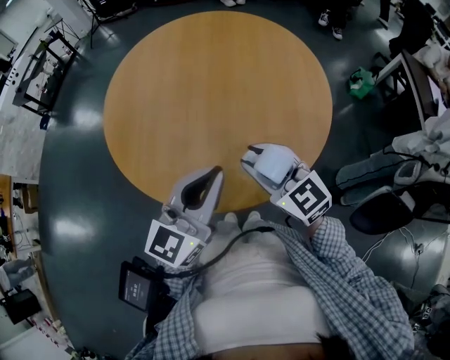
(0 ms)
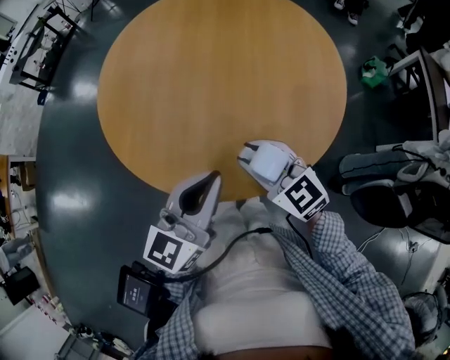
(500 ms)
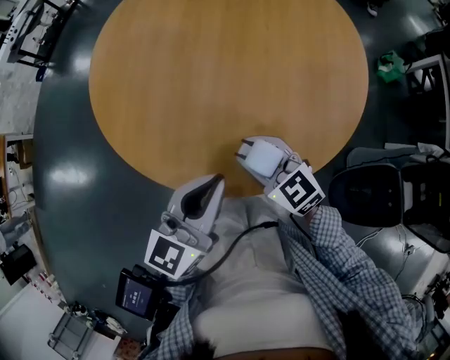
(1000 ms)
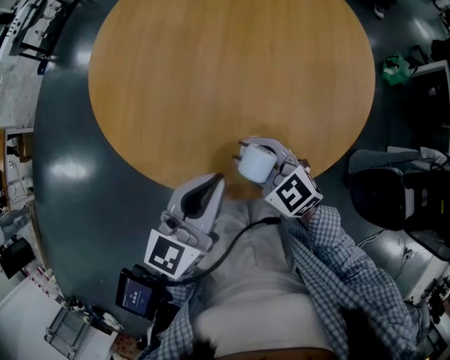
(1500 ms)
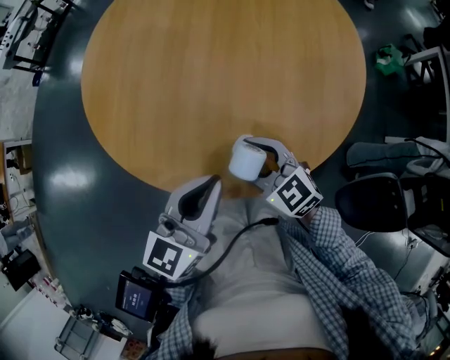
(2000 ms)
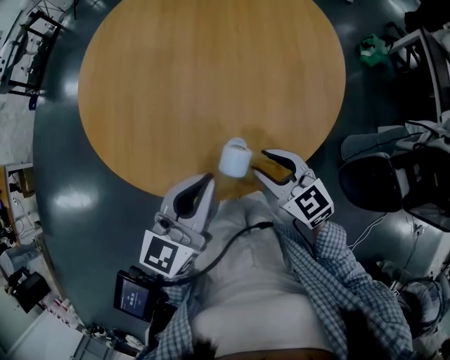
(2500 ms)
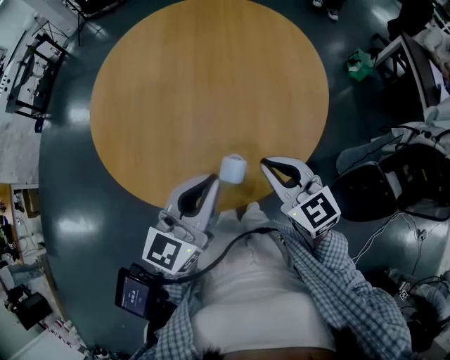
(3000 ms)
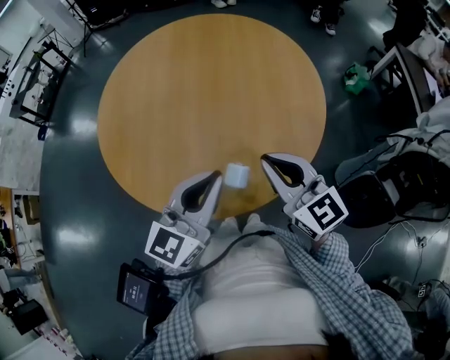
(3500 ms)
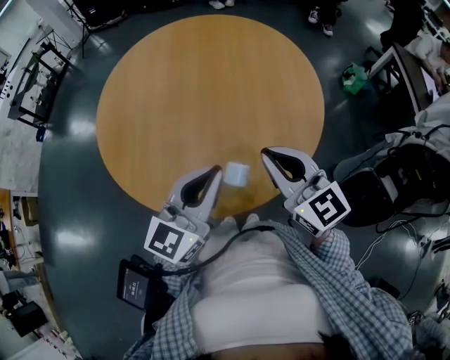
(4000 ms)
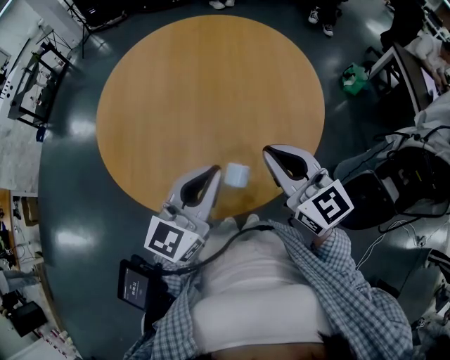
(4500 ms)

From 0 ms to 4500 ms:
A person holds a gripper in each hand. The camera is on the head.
From 0 ms to 2000 ms: The right gripper is displaced downward by some 15 cm, and opens. The left gripper shifts roughly 10 cm downward.
From 2000 ms to 4500 ms: The right gripper goes about 25 cm upward and to the right, changes its angle by some 30 degrees, and closes its fingers, while the left gripper goes about 10 cm upward.

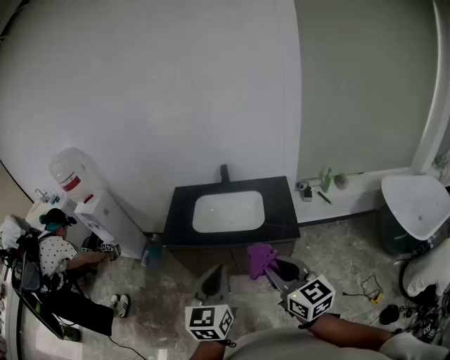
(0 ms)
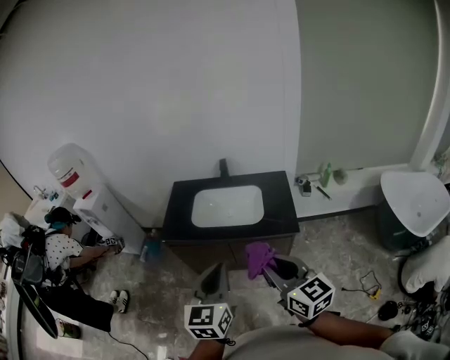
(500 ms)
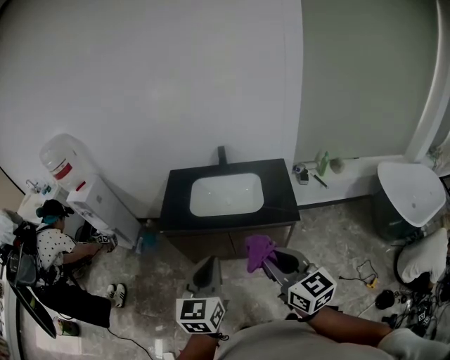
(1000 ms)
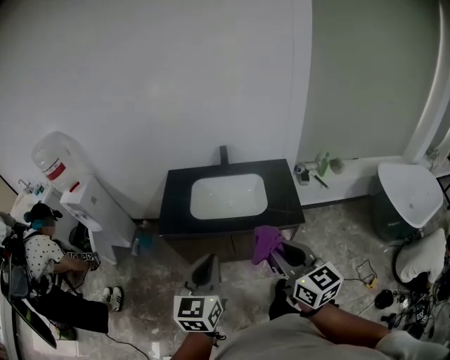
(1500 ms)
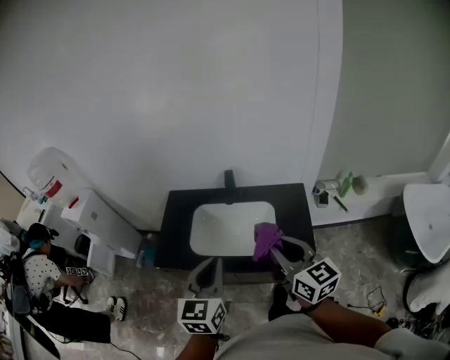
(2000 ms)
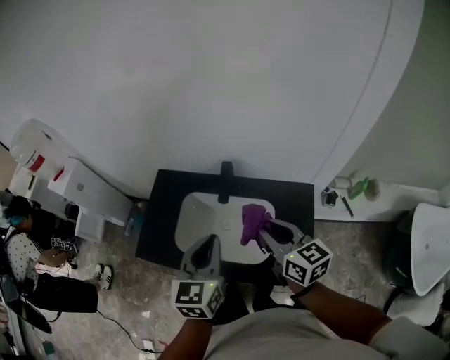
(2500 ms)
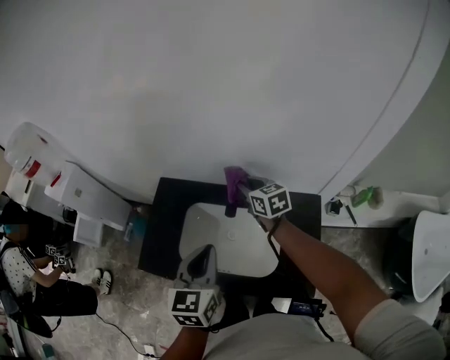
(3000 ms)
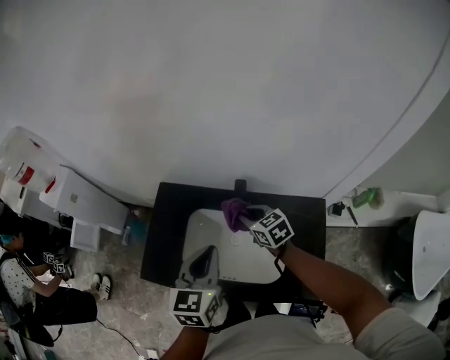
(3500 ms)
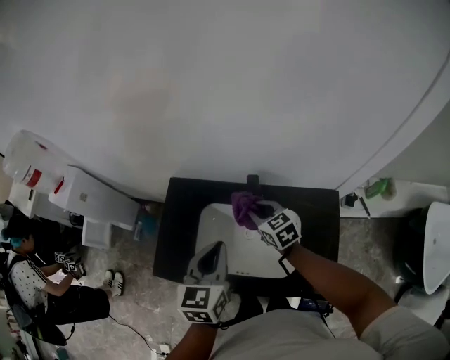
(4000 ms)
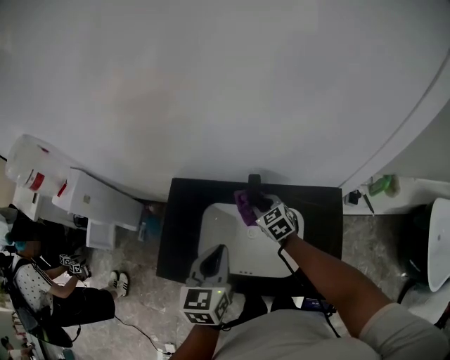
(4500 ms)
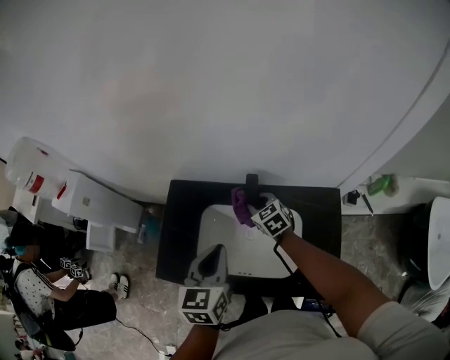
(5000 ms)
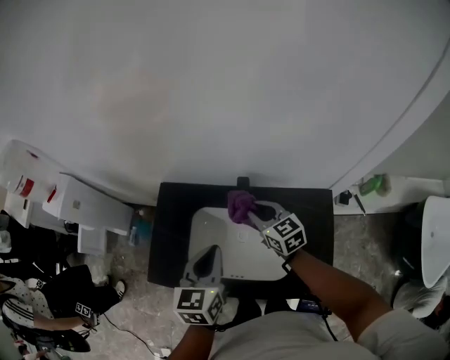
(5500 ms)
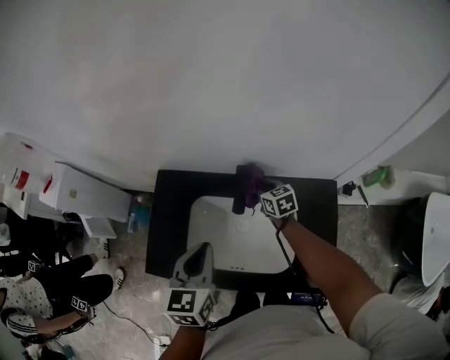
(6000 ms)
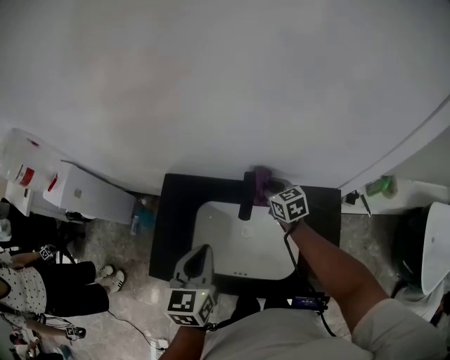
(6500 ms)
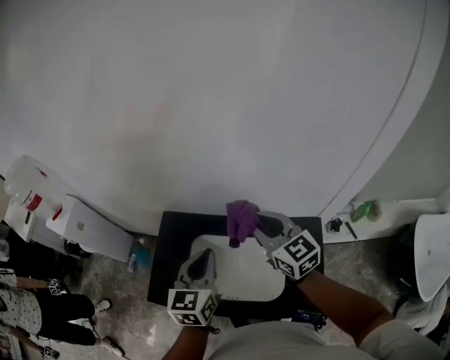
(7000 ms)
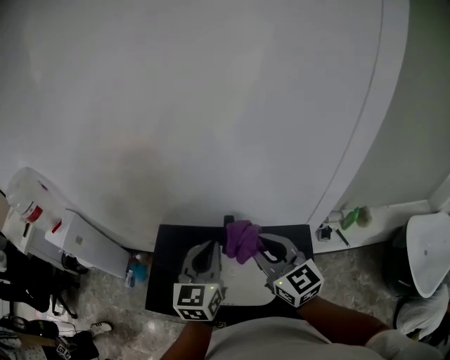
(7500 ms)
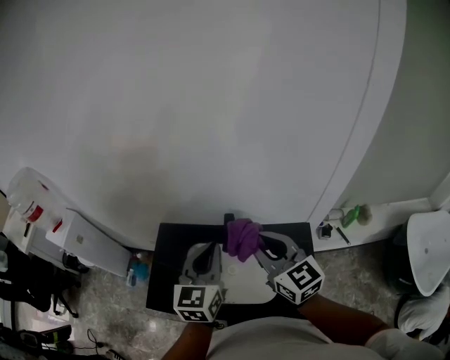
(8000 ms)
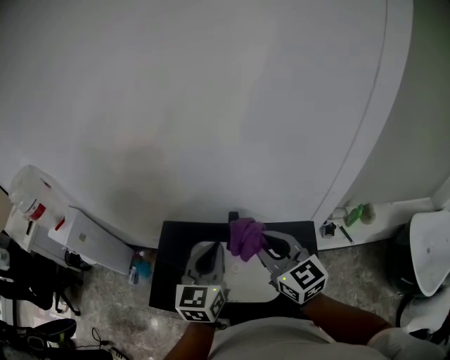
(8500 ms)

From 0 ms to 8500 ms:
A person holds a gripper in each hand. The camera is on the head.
From 0 ms to 2000 ms: Both grippers move forward, roughly 30 cm.
From 2000 ms to 4000 ms: The right gripper moves forward and downward, about 50 cm, and turns by approximately 30 degrees. Meanwhile the left gripper travels forward by approximately 30 cm.
From 4000 ms to 6500 ms: The right gripper swings up and down, about 15 cm each way, with 3 reversals.
From 6500 ms to 8500 ms: The left gripper moves upward and to the right, some 15 cm, and rotates roughly 20 degrees; the right gripper shifts about 40 cm upward and backward, and turns by roughly 30 degrees.

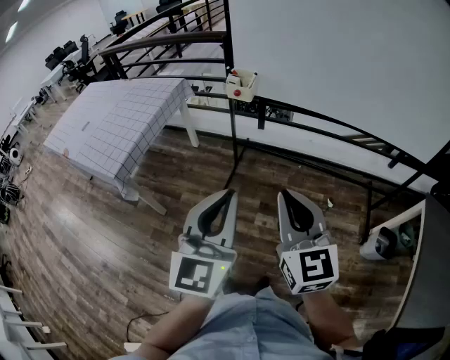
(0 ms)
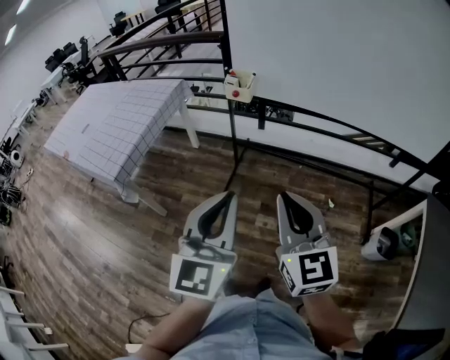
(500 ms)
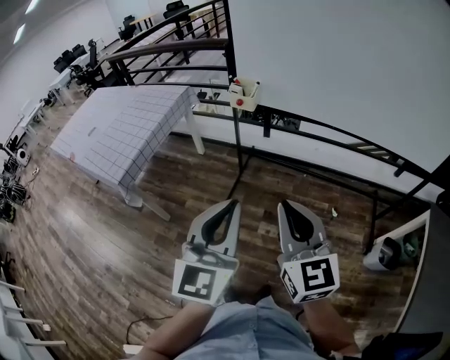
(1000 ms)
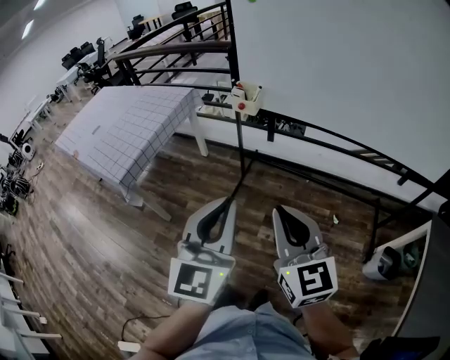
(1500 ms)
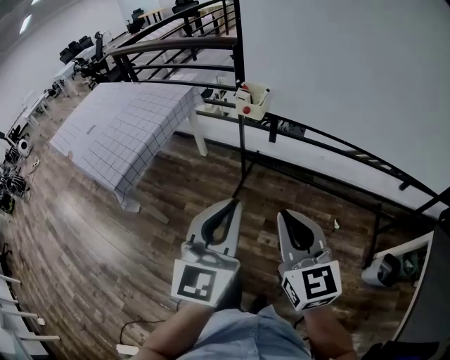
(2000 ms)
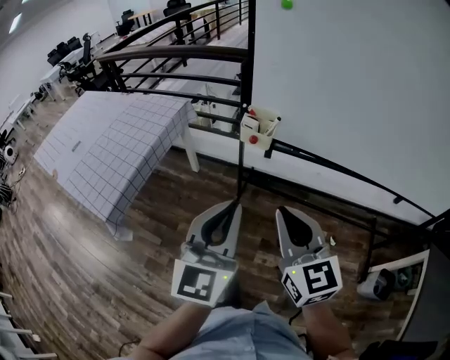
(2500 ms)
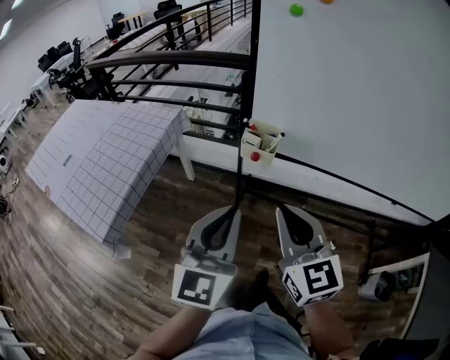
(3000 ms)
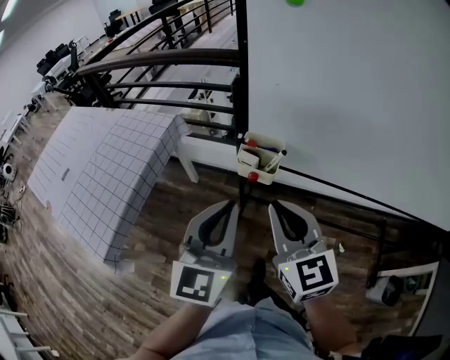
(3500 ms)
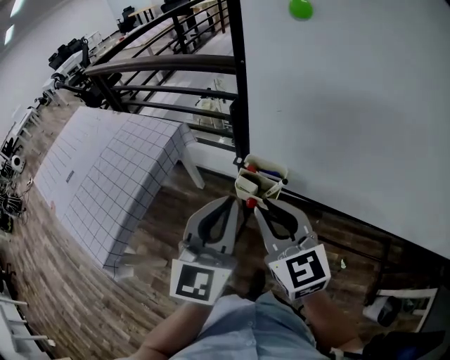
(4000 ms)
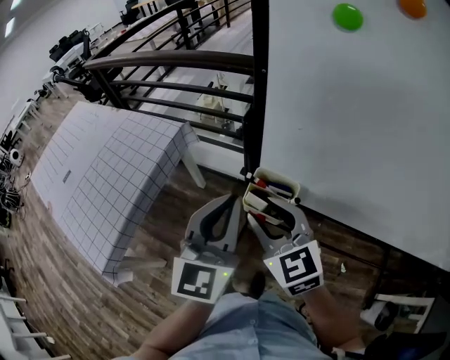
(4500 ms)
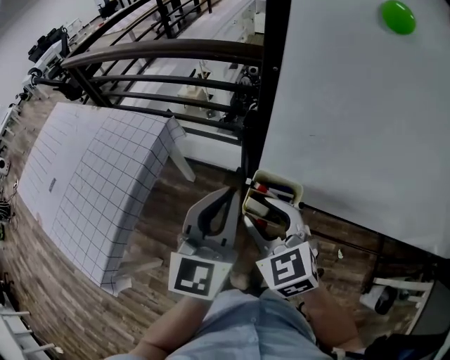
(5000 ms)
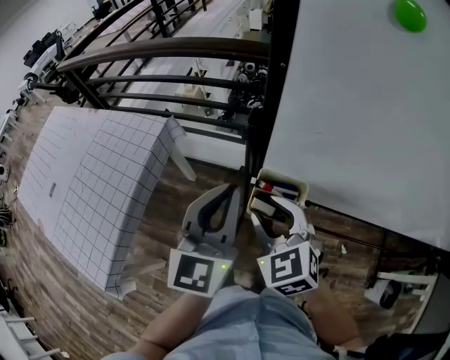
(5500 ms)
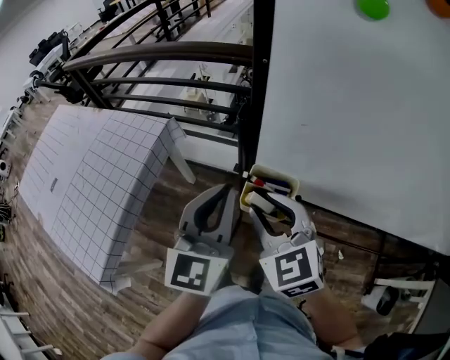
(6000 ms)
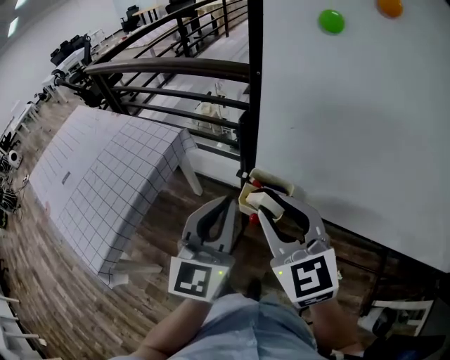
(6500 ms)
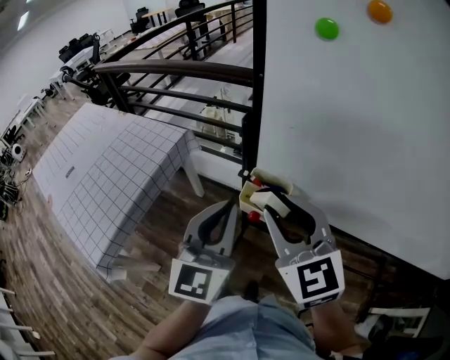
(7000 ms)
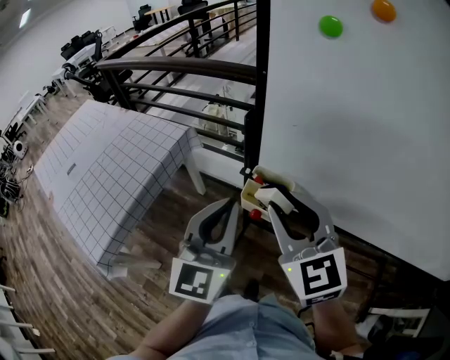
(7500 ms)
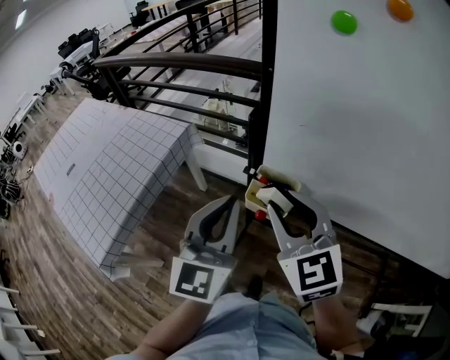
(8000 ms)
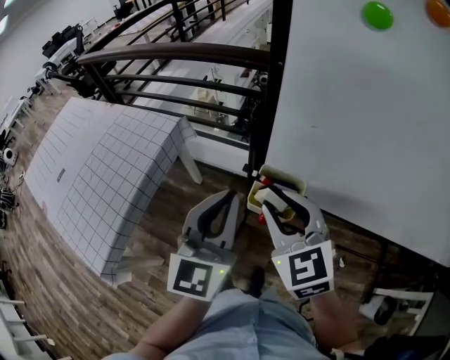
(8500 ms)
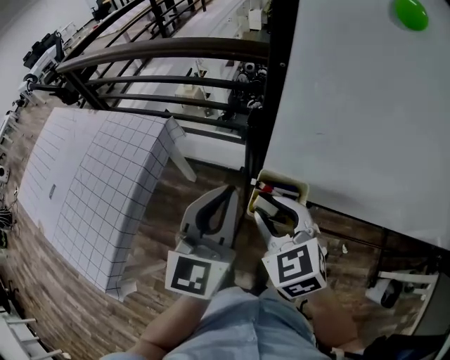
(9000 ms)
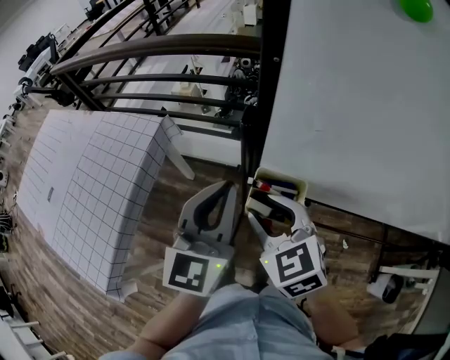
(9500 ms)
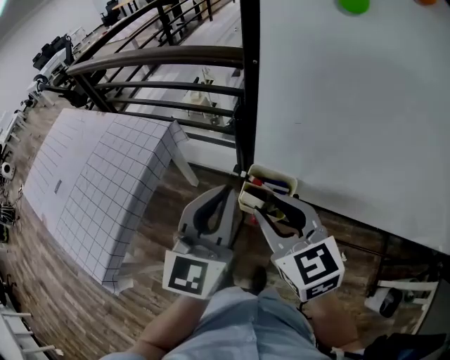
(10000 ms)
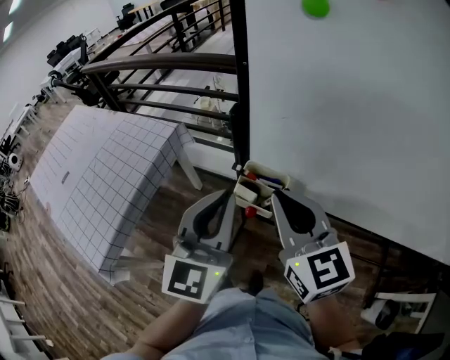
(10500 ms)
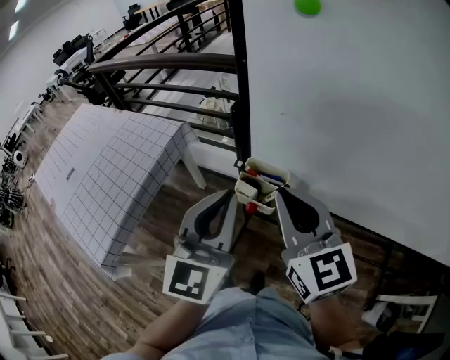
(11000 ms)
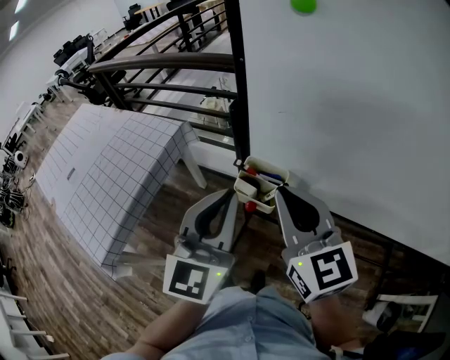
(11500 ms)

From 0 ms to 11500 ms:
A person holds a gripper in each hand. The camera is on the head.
From 0 ms to 2000 ms: Both grippers travel together forward, approximately 10 cm.
From 2000 ms to 4000 ms: Both grippers travel together forward, some 40 cm.
From 4000 ms to 6000 ms: The grippers both shift forward by about 10 cm. The right gripper opens.
From 6000 ms to 7500 ms: The right gripper shifts approximately 10 cm upward and backward. Meanwhile the left gripper shifts approximately 5 cm backward.
From 7500 ms to 9500 ms: The left gripper is displaced forward by roughly 10 cm, while the right gripper goes about 15 cm downward, forward and to the left, and swivels roughly 20 degrees.
From 9500 ms to 11500 ms: The right gripper travels upward, to the right and backward by roughly 15 cm, rotates some 30 degrees, and closes its fingers; the left gripper goes about 10 cm backward.

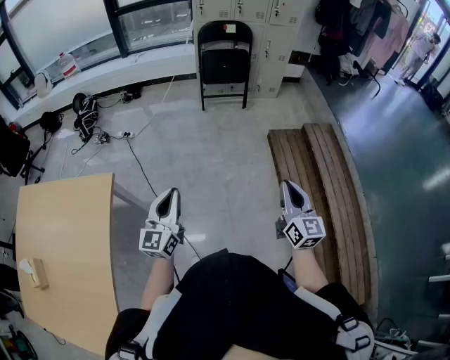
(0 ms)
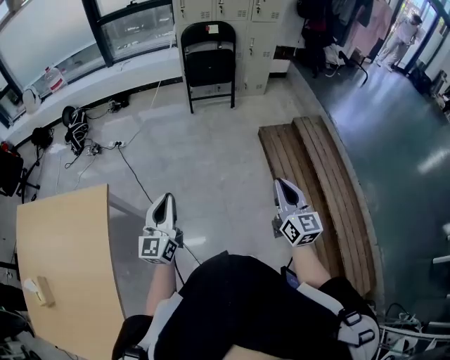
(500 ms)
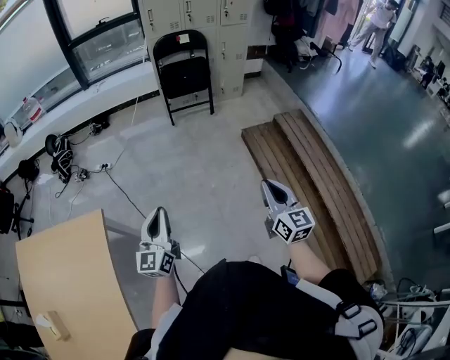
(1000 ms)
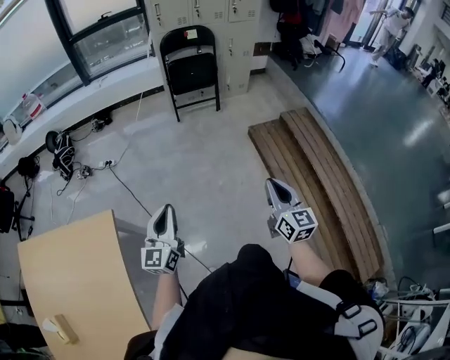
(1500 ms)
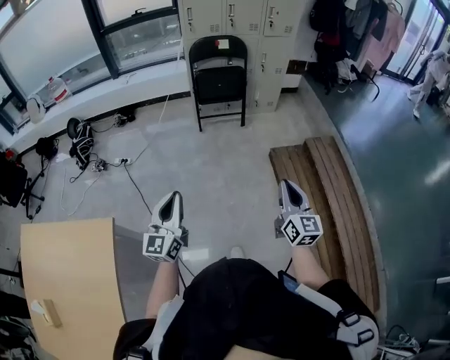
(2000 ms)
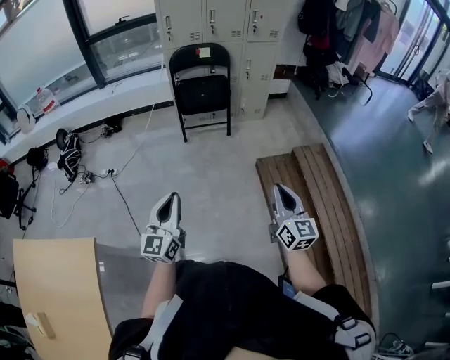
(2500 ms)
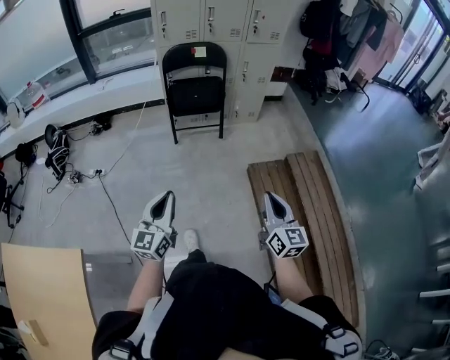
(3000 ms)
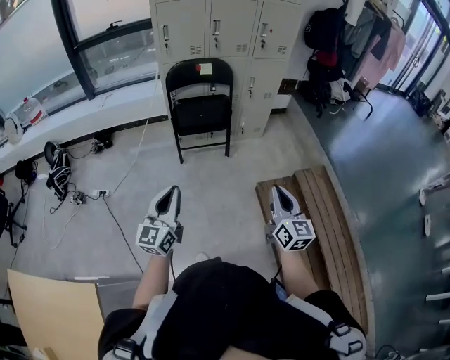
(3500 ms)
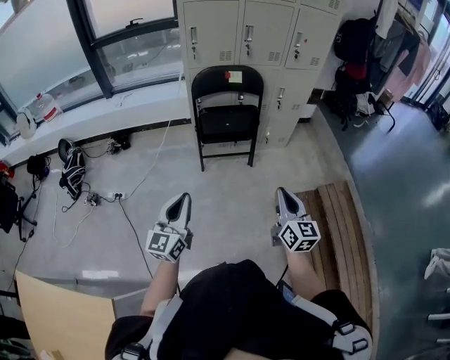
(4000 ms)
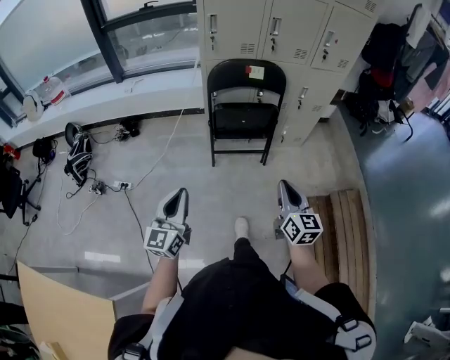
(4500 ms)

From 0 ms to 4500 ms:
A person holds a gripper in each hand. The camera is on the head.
From 0 ms to 2000 ms: Both grippers travel together forward, roughly 15 cm.
From 2000 ms to 4500 ms: The pair of grippers is taken forward, roughly 50 cm.
